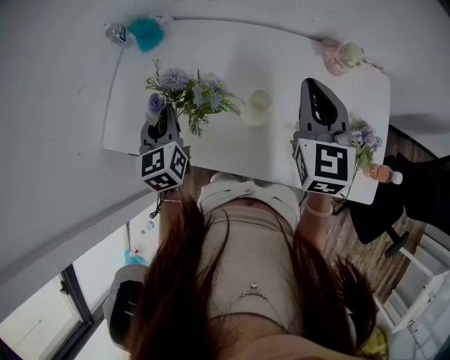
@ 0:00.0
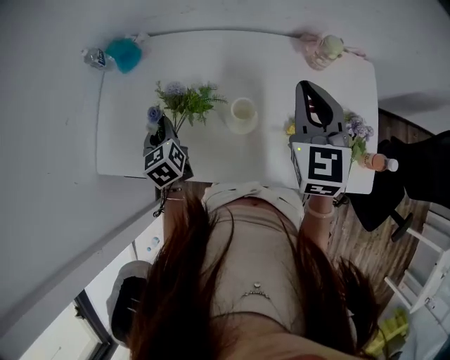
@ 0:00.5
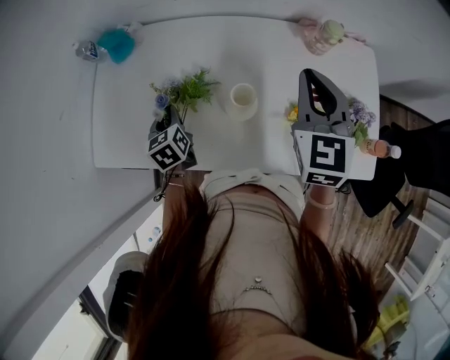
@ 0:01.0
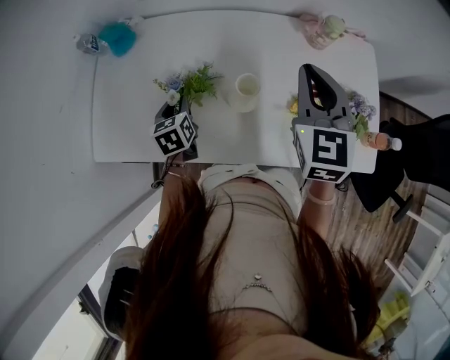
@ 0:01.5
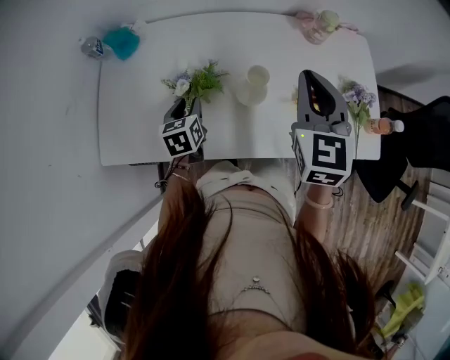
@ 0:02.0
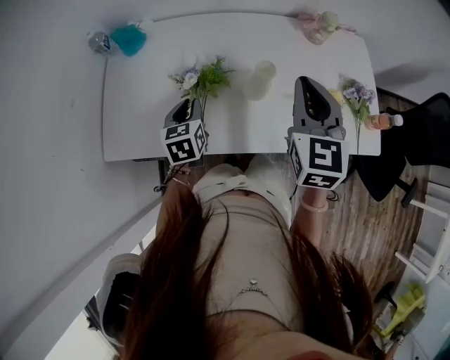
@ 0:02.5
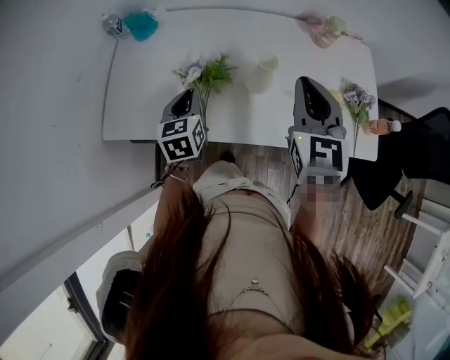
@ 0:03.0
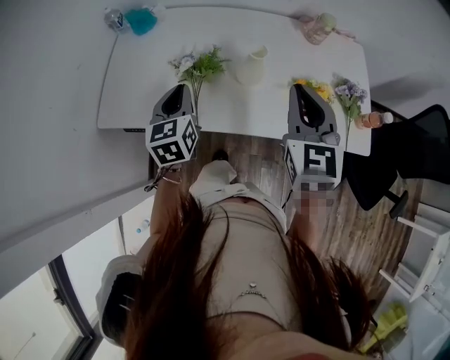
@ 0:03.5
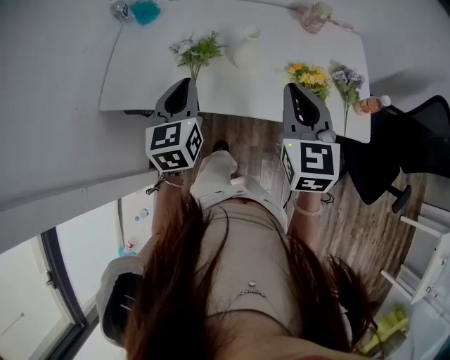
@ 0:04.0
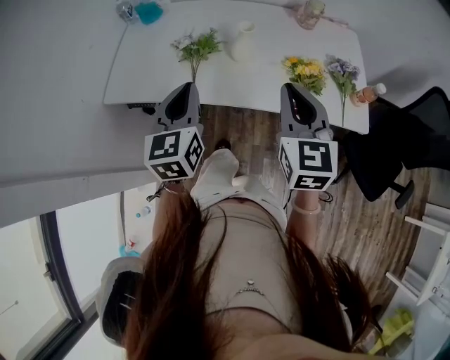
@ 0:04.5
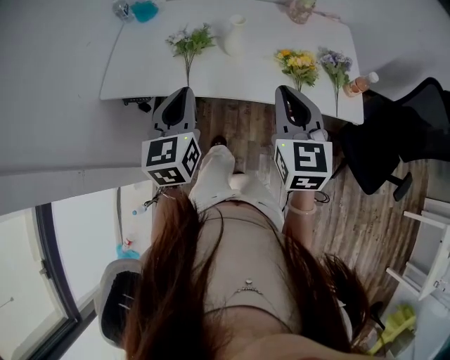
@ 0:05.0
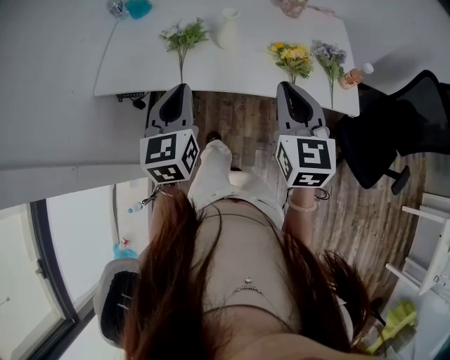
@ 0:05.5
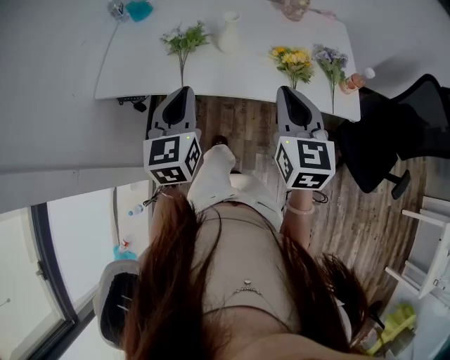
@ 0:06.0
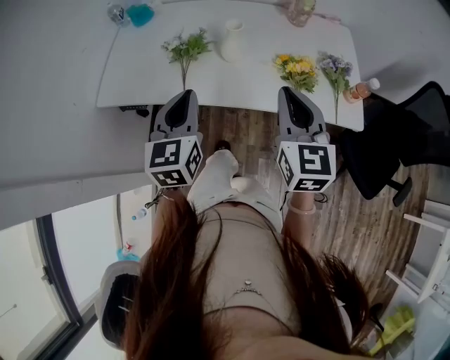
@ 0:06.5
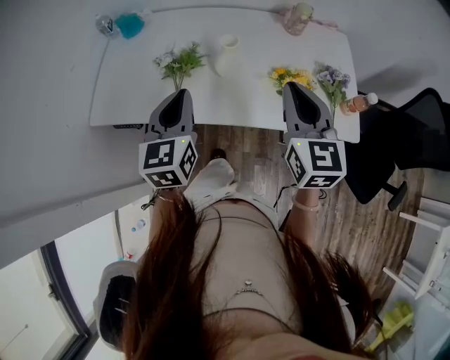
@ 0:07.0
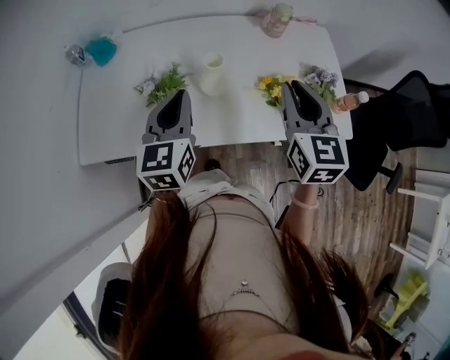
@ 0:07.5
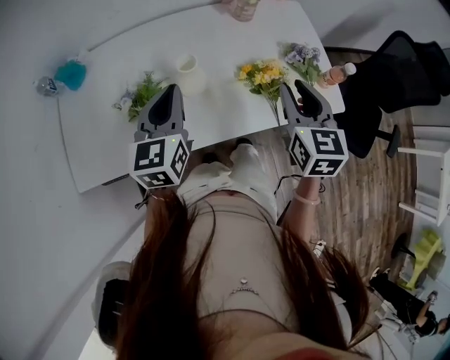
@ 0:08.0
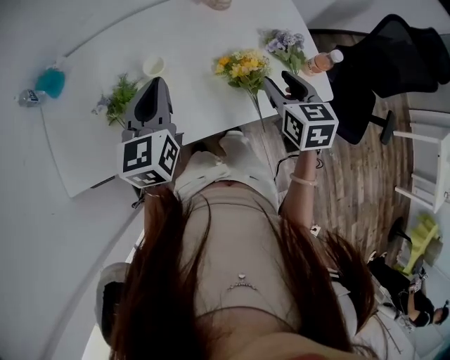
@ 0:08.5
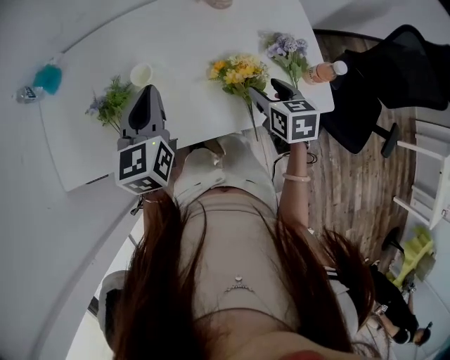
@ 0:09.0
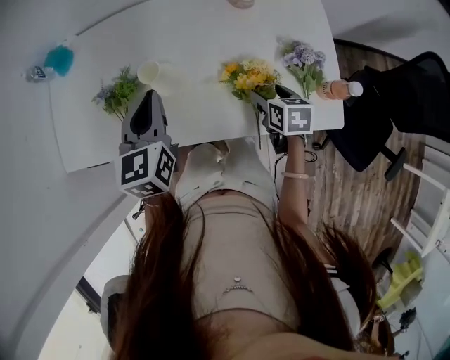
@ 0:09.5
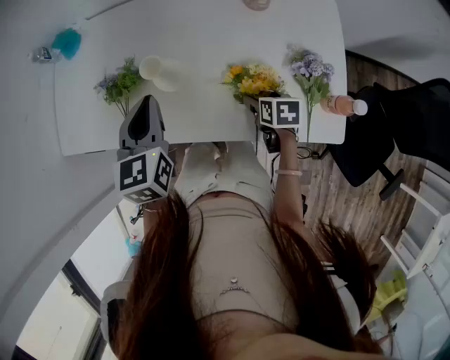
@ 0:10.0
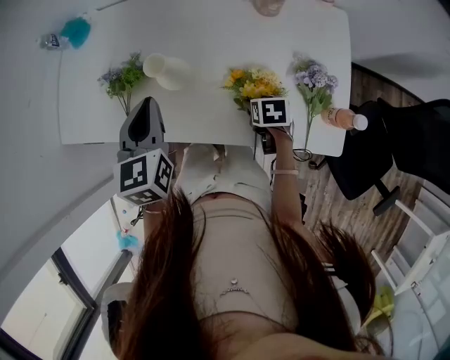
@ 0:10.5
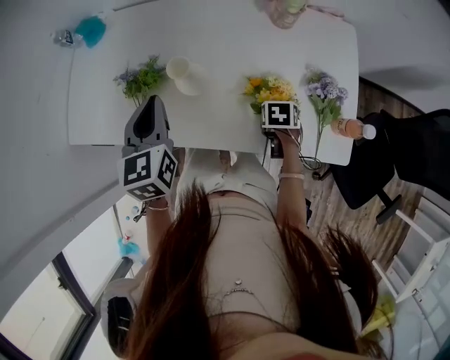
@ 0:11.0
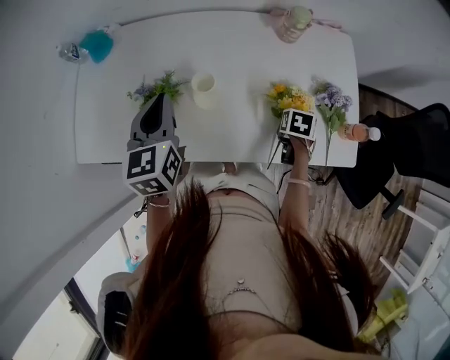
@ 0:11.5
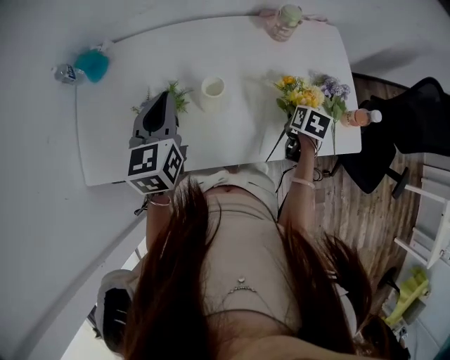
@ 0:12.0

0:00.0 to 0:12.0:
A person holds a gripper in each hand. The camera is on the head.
0:00.0 to 0:02.0: The left gripper travels downward by about 15 cm, and rotates some 30 degrees; the right gripper is displaced backward by about 5 cm.
0:02.0 to 0:04.0: The right gripper is displaced backward by some 20 cm. The left gripper shifts about 25 cm backward and upward, rotates about 30 degrees, and closes its fingers.
0:04.0 to 0:06.0: Both grippers travel together backward, about 10 cm.
0:06.0 to 0:08.0: The right gripper goes some 20 cm forward and to the right, and rotates approximately 20 degrees. Meanwhile the left gripper is displaced forward by roughly 25 cm, and turns by approximately 20 degrees.
0:08.0 to 0:10.0: The right gripper shifts approximately 25 cm downward, points its fingers some 30 degrees further downward, and opens its fingers. Meanwhile the left gripper moves approximately 5 cm, and changes its angle by roughly 30 degrees.
0:10.0 to 0:12.0: The left gripper moves about 15 cm; the right gripper shifts by roughly 5 cm, turns by about 30 degrees, and closes its fingers.

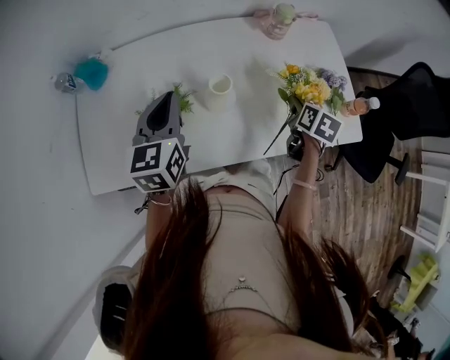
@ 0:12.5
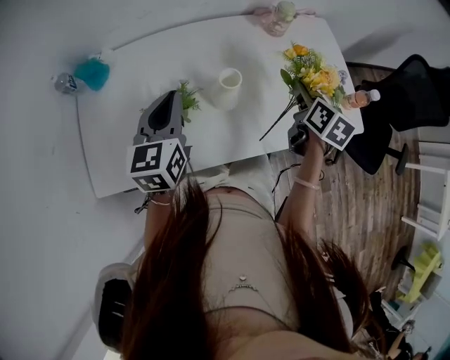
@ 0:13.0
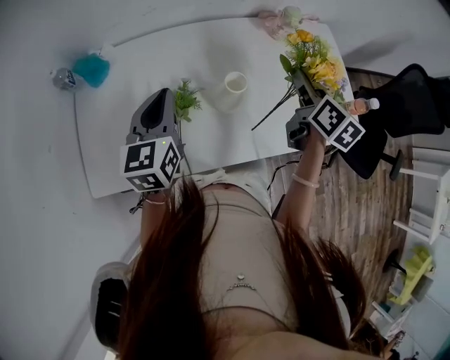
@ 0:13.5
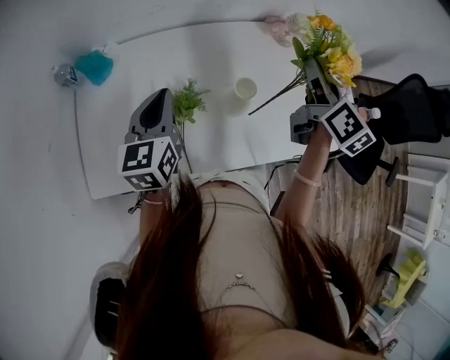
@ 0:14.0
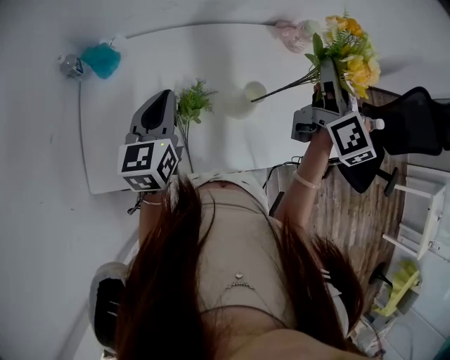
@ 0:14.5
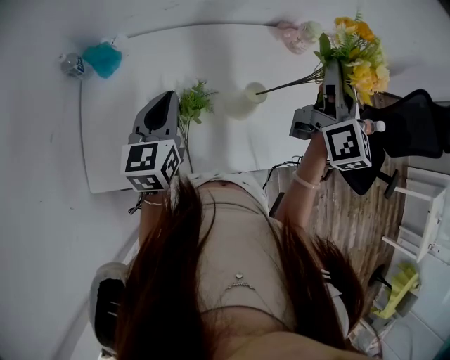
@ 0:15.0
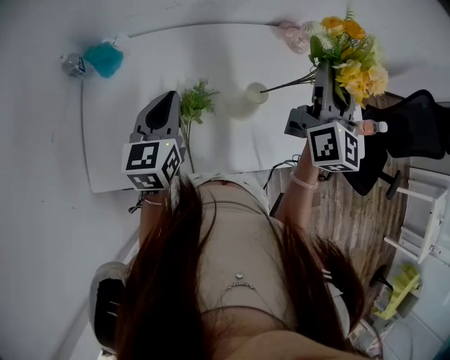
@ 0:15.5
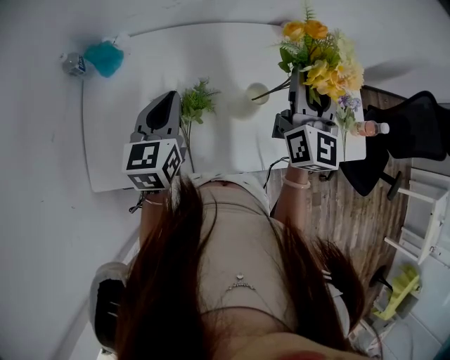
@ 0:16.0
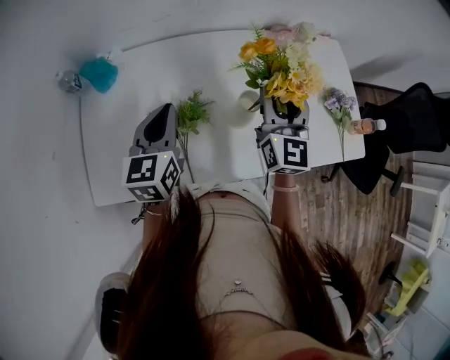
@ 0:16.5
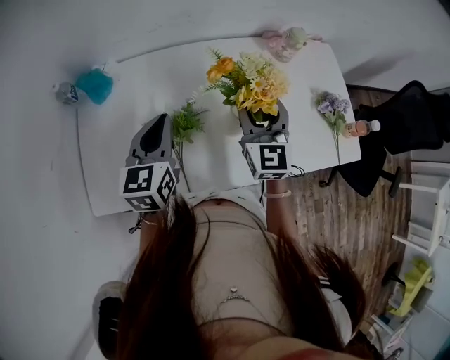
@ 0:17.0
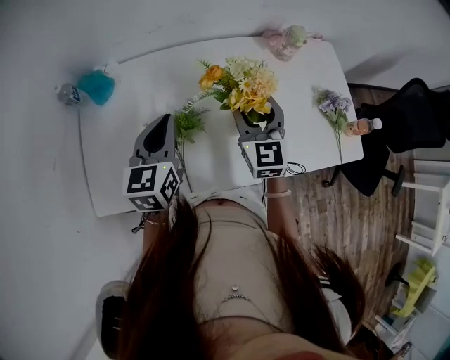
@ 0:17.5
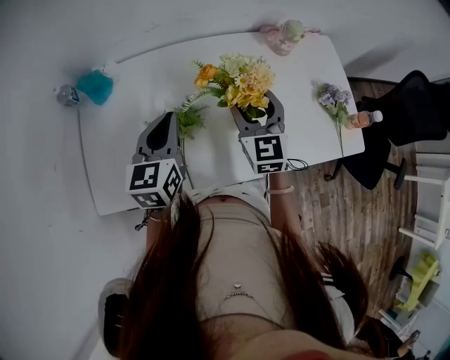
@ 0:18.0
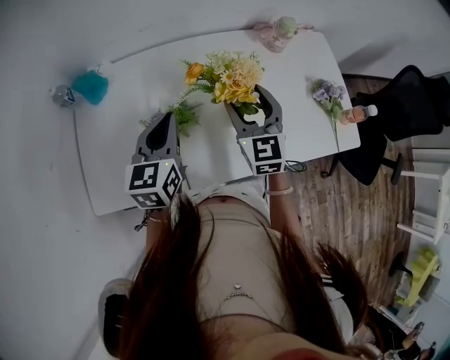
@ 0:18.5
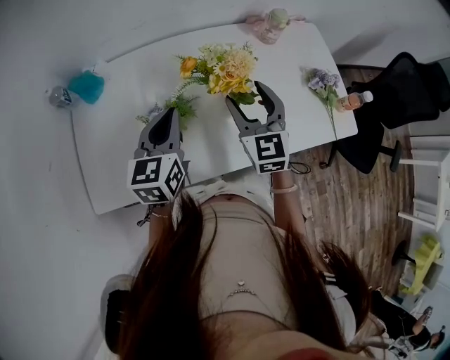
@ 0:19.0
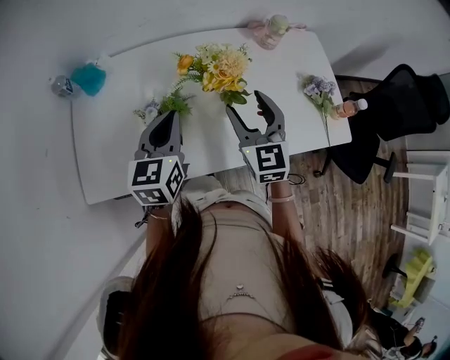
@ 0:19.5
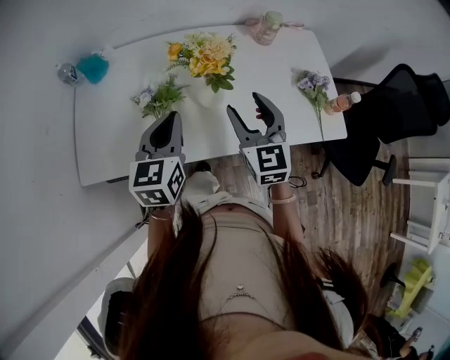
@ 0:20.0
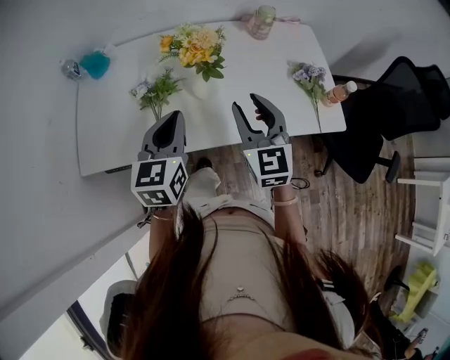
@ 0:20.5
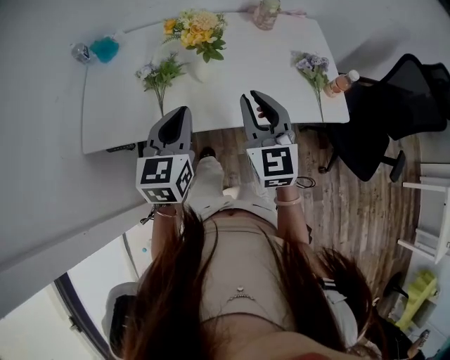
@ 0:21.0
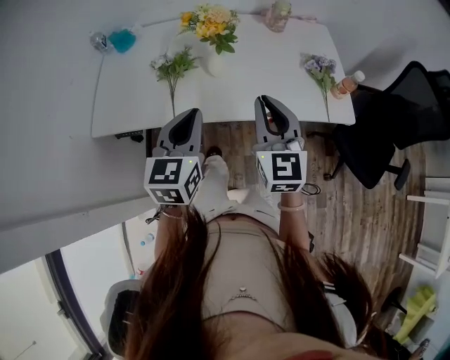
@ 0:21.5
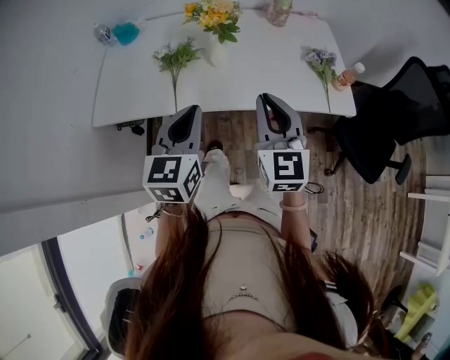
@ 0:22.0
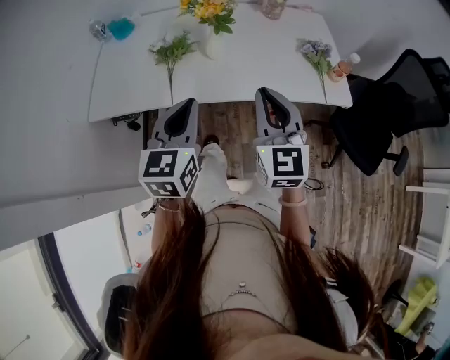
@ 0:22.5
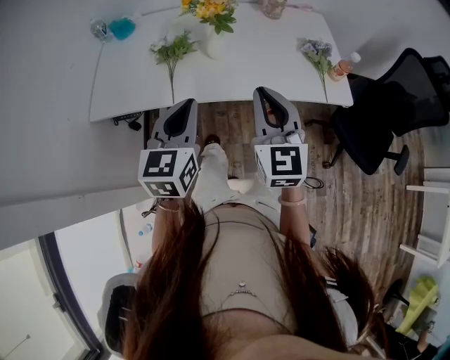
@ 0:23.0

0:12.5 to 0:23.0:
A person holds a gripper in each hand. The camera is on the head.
0:12.5 to 0:14.5: The left gripper heads to the left, covering approximately 10 cm. Meanwhile the right gripper goes approximately 25 cm upward and to the left, and angles its fingers upward, by some 50 degrees.
0:14.5 to 0:16.5: The right gripper heads to the left and downward, covering roughly 10 cm, and rotates some 30 degrees.
0:16.5 to 0:19.0: The right gripper is displaced downward by approximately 5 cm, and turns by approximately 20 degrees.
0:19.0 to 0:21.0: Both grippers travel together backward and to the right, approximately 20 cm. The right gripper closes up.
0:21.0 to 0:23.0: Both grippers travel together backward, some 10 cm.

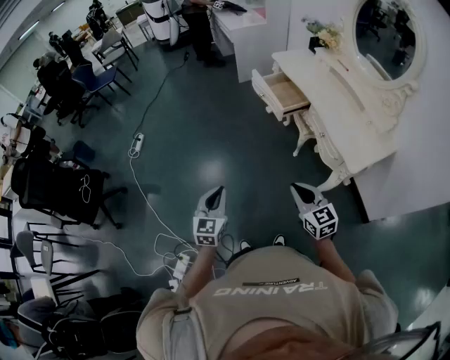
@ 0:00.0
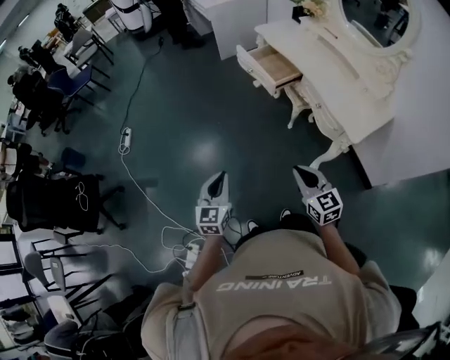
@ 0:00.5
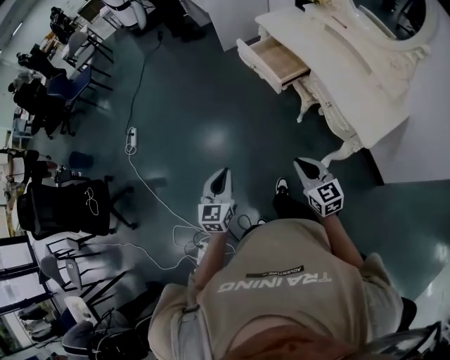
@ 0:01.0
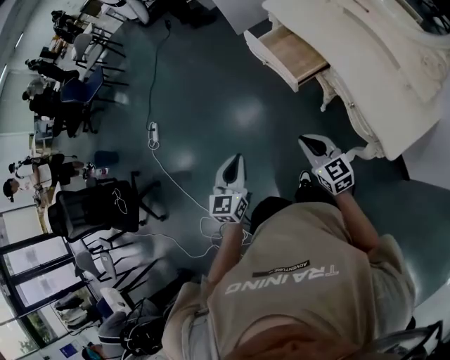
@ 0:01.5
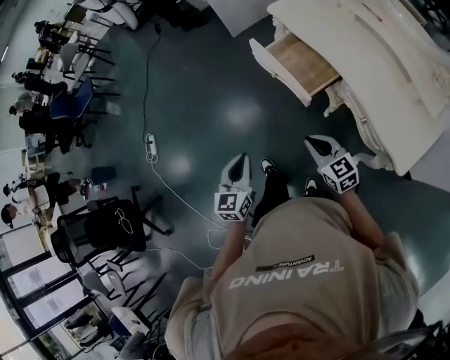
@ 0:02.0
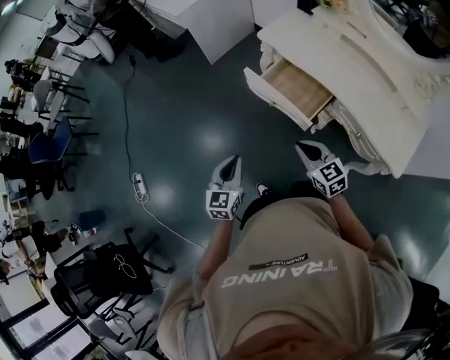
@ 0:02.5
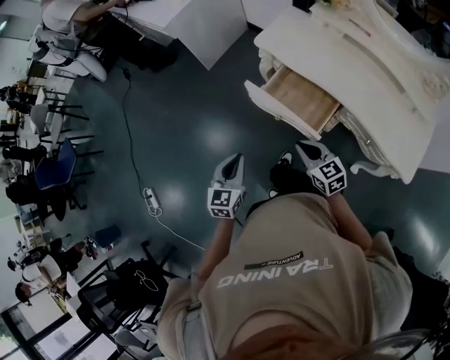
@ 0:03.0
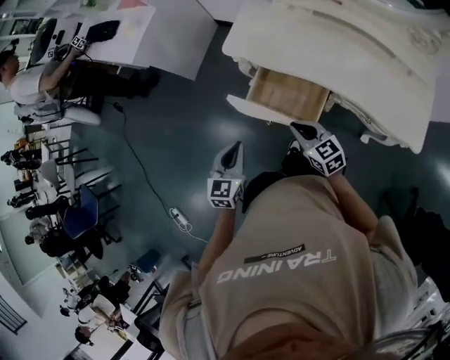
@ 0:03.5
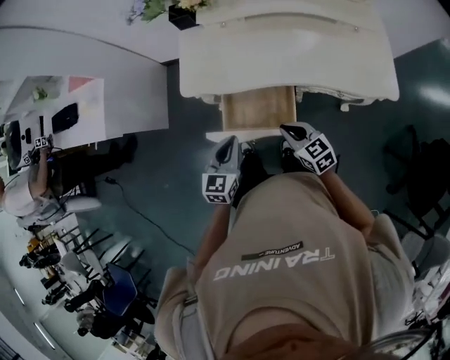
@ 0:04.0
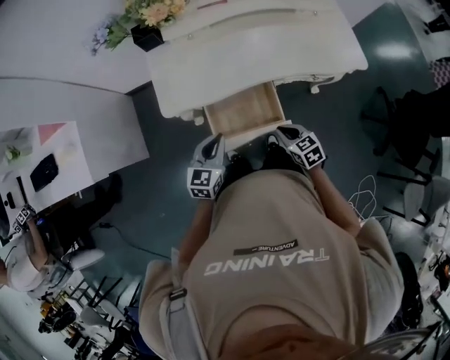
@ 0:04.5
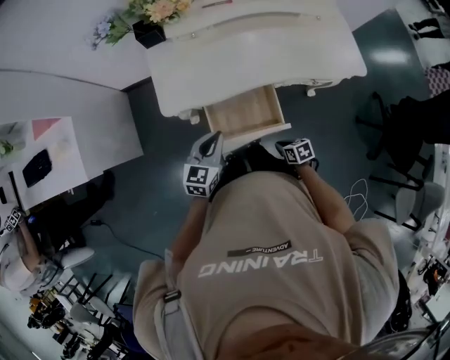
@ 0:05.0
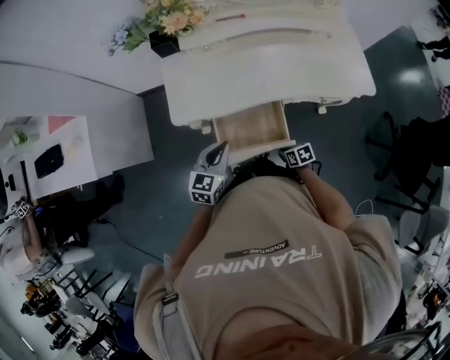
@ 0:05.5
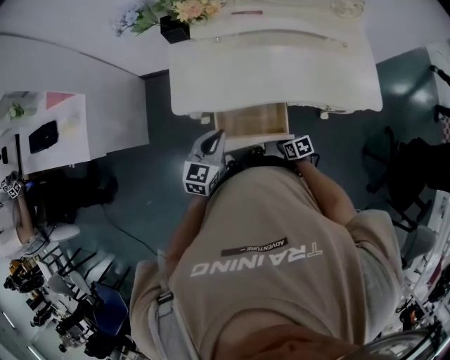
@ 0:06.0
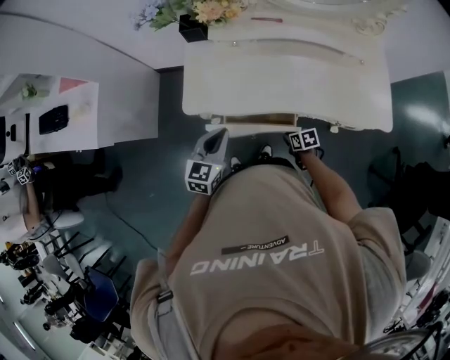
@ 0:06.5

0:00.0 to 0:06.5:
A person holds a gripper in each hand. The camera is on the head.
0:00.0 to 0:02.0: Both grippers are carried forward, about 40 cm.
0:02.0 to 0:04.5: The right gripper ends up approximately 35 cm from where it was, and swivels about 70 degrees, while the left gripper changes place by about 60 cm, and turns by about 80 degrees.
0:04.5 to 0:06.5: The left gripper heads forward, covering some 10 cm; the right gripper travels downward and forward by roughly 20 cm, and turns by some 30 degrees.
